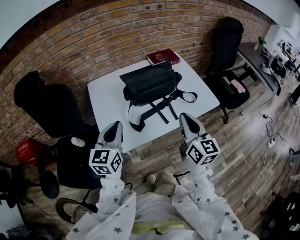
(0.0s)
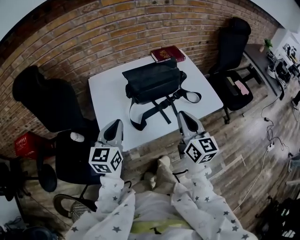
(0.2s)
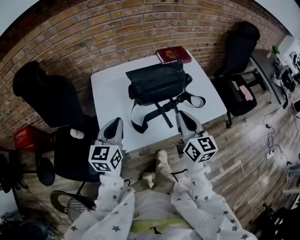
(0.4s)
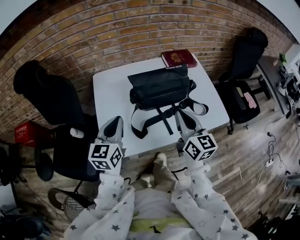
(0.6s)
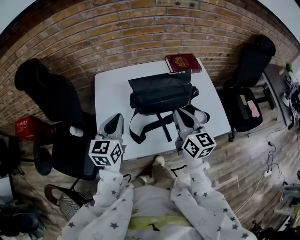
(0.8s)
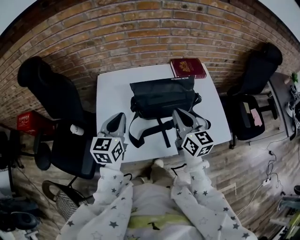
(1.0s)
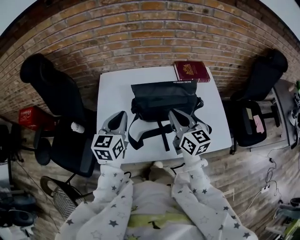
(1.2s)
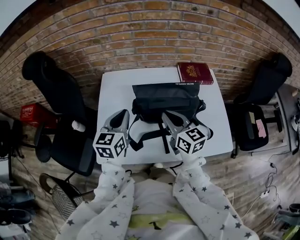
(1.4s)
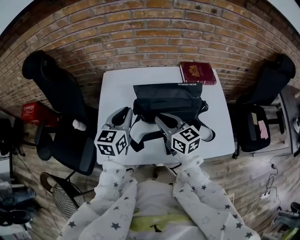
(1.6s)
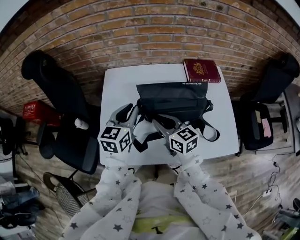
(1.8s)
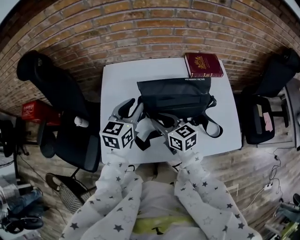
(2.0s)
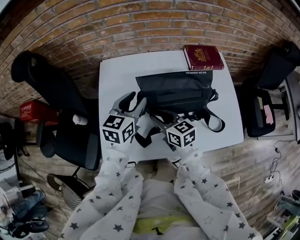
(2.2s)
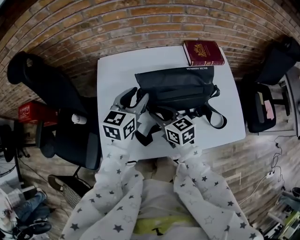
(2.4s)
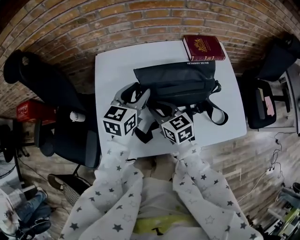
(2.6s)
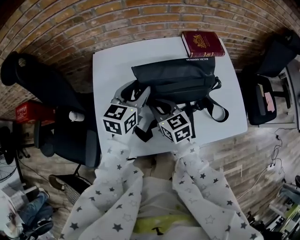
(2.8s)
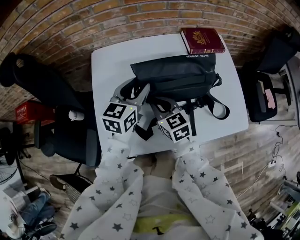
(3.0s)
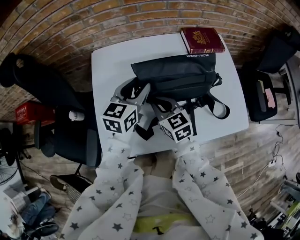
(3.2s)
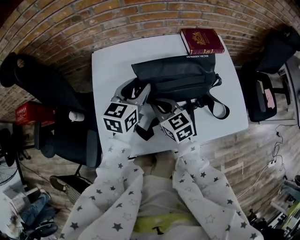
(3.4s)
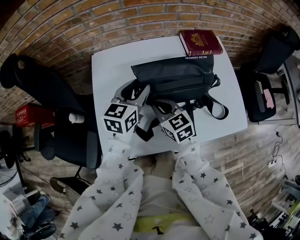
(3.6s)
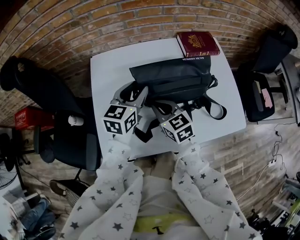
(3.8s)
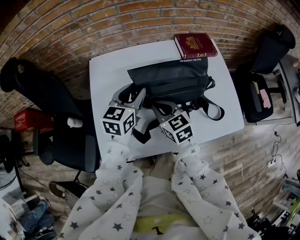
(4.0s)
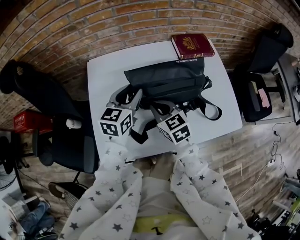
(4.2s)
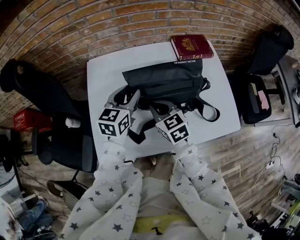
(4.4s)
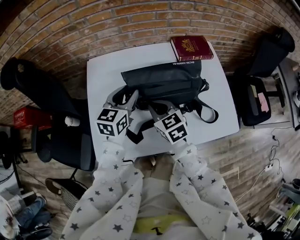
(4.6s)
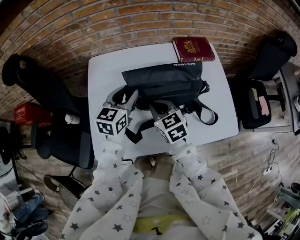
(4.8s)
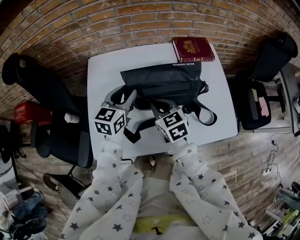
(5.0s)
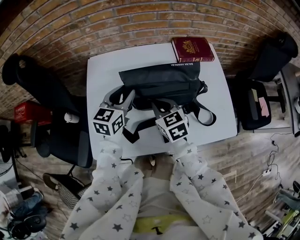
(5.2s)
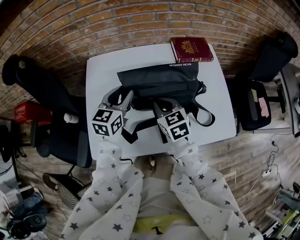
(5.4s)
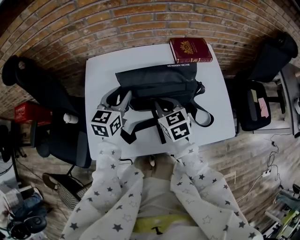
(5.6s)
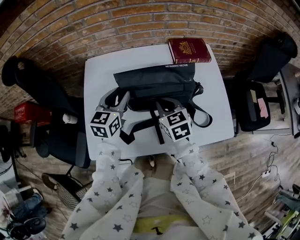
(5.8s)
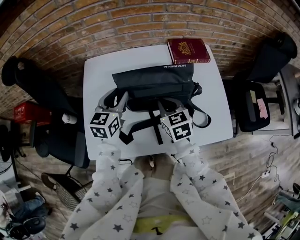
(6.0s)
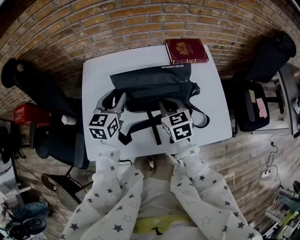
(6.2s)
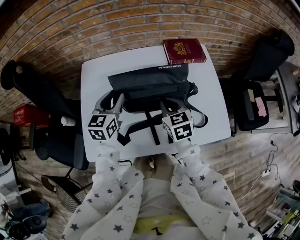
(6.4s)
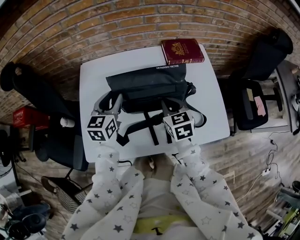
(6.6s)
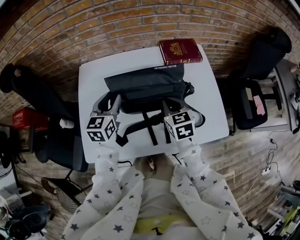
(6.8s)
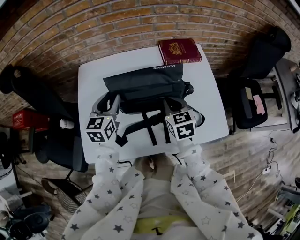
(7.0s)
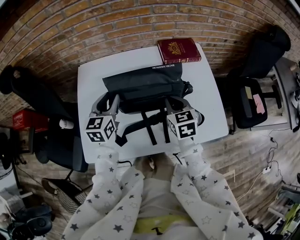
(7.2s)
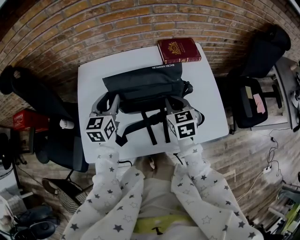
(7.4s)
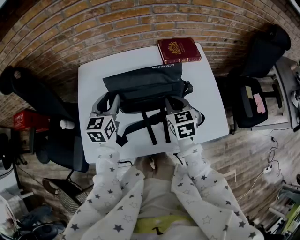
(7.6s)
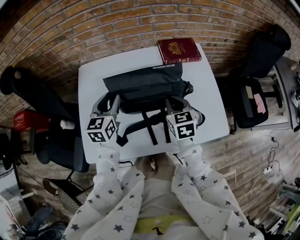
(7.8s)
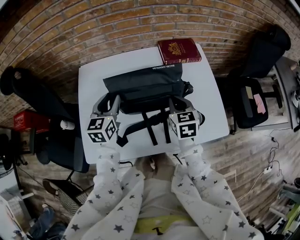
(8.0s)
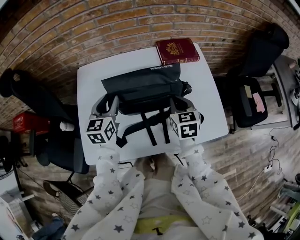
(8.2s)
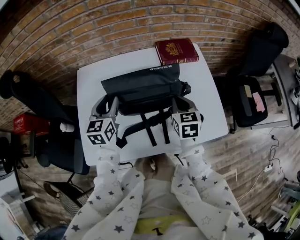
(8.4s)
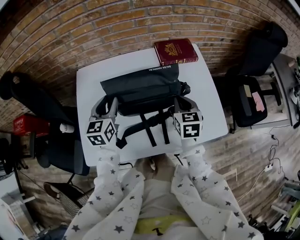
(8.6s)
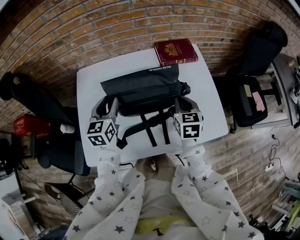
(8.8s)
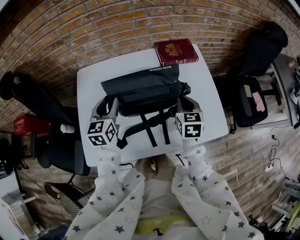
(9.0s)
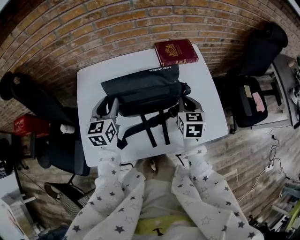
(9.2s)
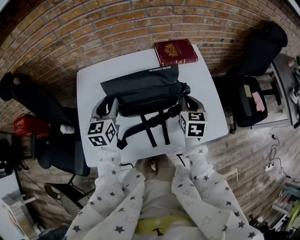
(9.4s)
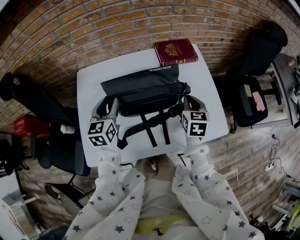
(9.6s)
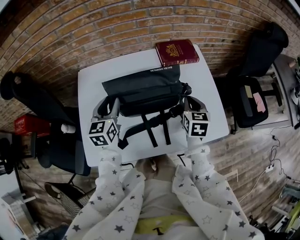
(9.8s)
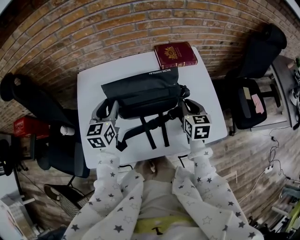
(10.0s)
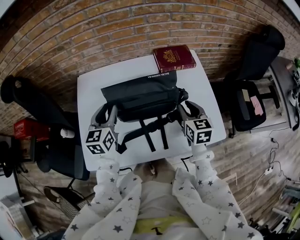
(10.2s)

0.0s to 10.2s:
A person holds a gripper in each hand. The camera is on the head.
0.0s to 1.4s: The right gripper changes place by approximately 25 cm, and turns by roughly 40 degrees; the left gripper shifts by approximately 15 cm.
1.4s to 3.0s: The right gripper goes approximately 15 cm downward and to the left, and opens, then closes once more; the left gripper heads forward and to the right, covering approximately 10 cm, and opens its fingers.
3.0s to 4.4s: The grippers move only a little.
4.4s to 5.8s: The right gripper travels to the right by roughly 5 cm.
5.8s to 7.2s: The right gripper travels to the right by approximately 10 cm.
7.2s to 8.8s: The right gripper goes approximately 5 cm to the right.
8.8s to 10.2s: The right gripper opens its fingers.

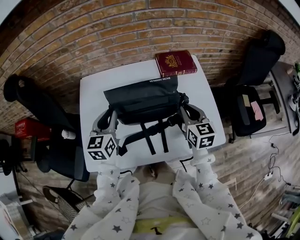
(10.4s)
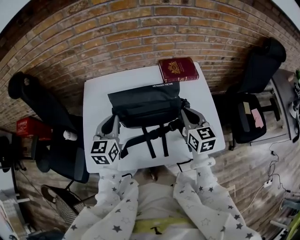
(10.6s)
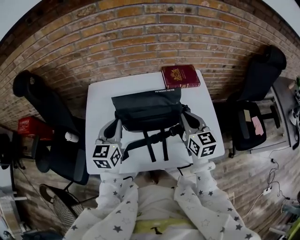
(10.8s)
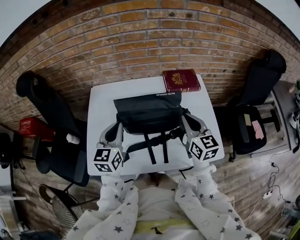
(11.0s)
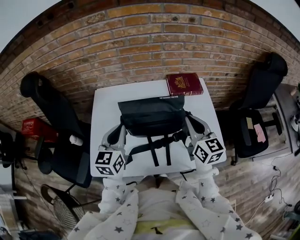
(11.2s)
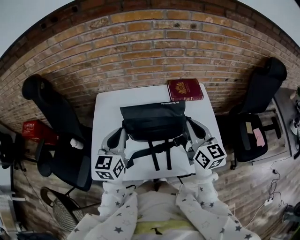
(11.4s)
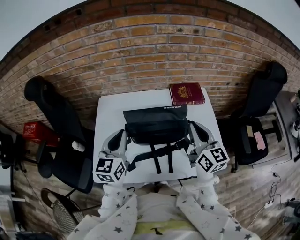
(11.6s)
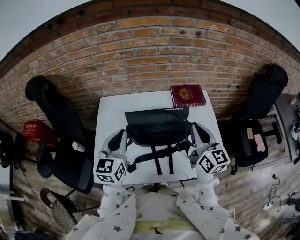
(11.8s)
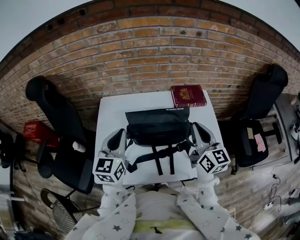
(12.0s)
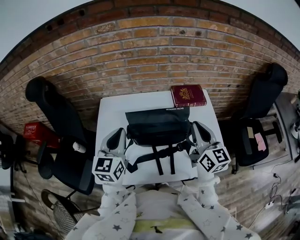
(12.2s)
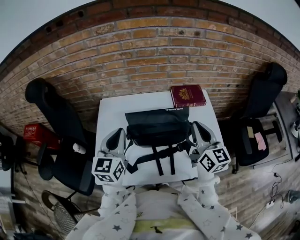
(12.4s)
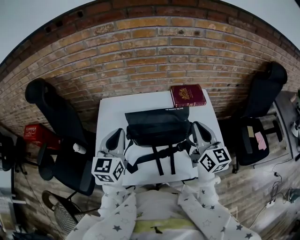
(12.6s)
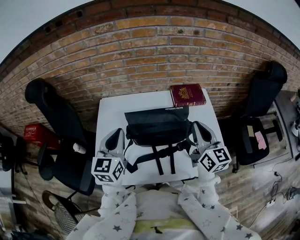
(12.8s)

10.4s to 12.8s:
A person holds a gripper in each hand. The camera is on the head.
10.4s to 11.6s: The left gripper goes some 10 cm upward. The right gripper moves upward, about 15 cm, and swivels some 30 degrees.
11.6s to 12.8s: The grippers move only a little.

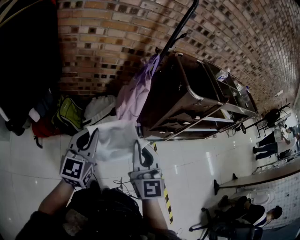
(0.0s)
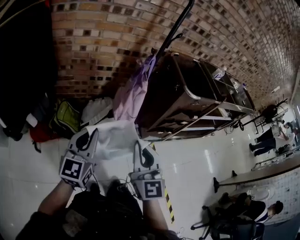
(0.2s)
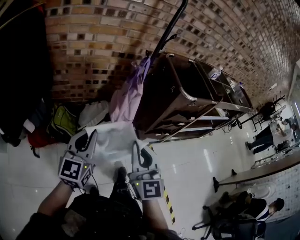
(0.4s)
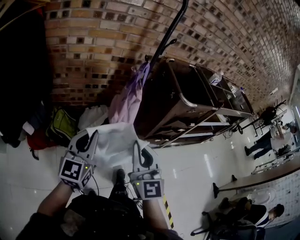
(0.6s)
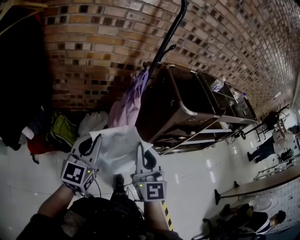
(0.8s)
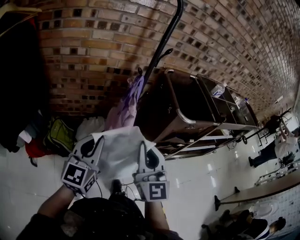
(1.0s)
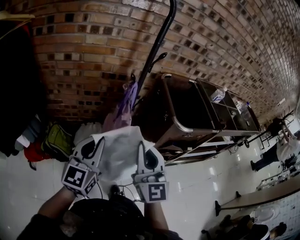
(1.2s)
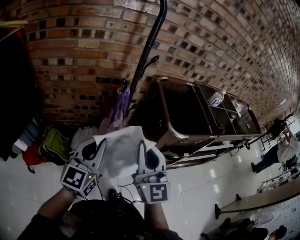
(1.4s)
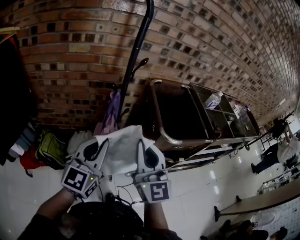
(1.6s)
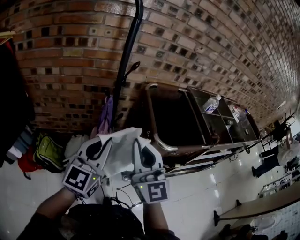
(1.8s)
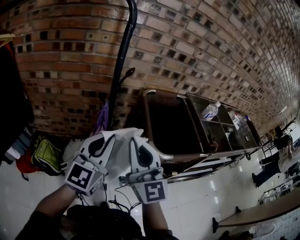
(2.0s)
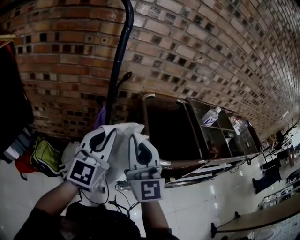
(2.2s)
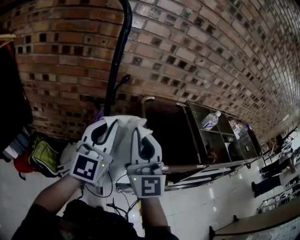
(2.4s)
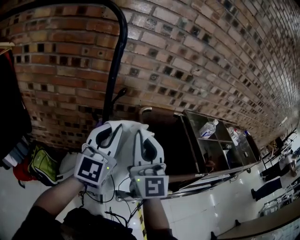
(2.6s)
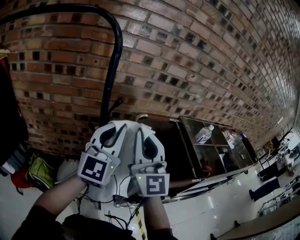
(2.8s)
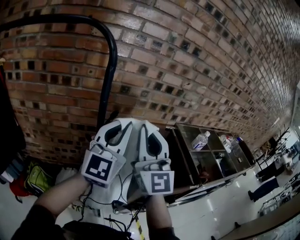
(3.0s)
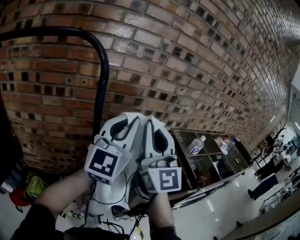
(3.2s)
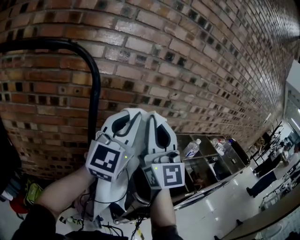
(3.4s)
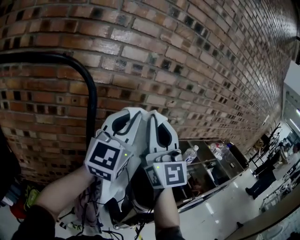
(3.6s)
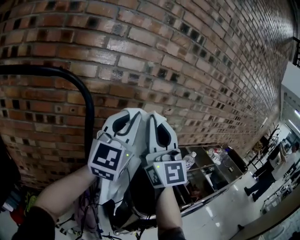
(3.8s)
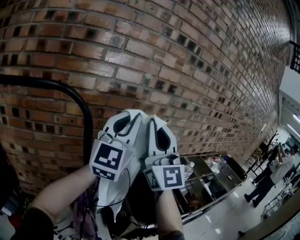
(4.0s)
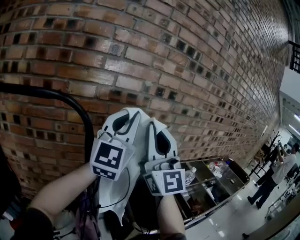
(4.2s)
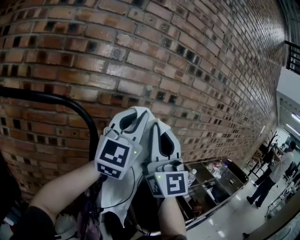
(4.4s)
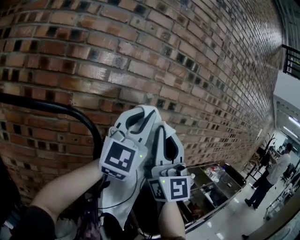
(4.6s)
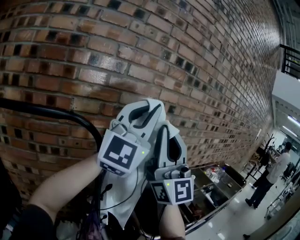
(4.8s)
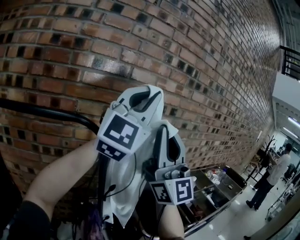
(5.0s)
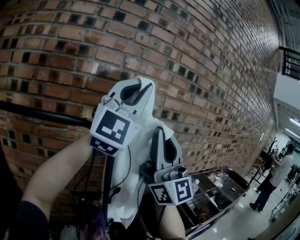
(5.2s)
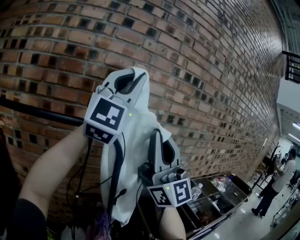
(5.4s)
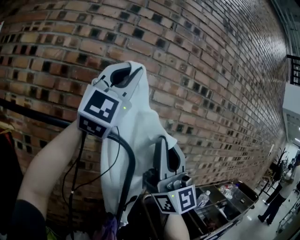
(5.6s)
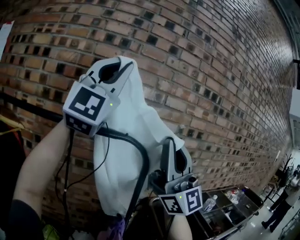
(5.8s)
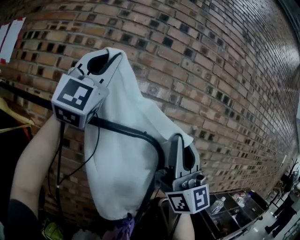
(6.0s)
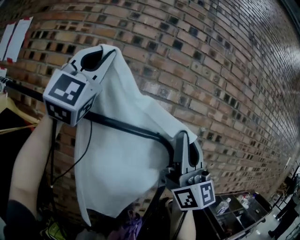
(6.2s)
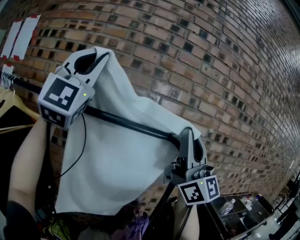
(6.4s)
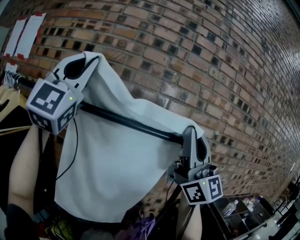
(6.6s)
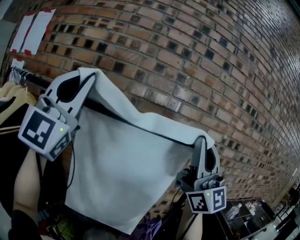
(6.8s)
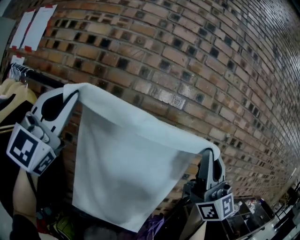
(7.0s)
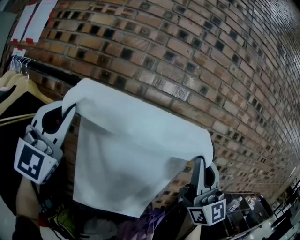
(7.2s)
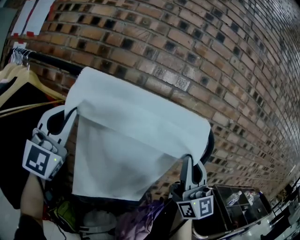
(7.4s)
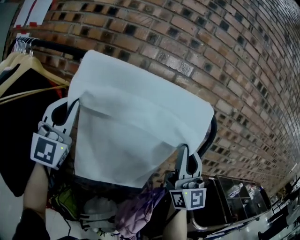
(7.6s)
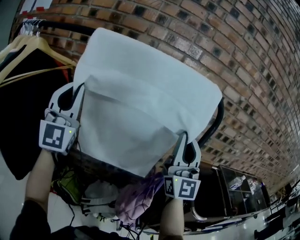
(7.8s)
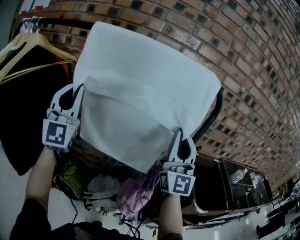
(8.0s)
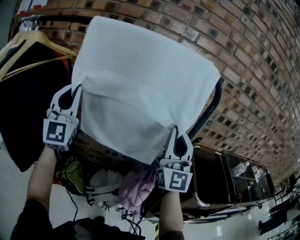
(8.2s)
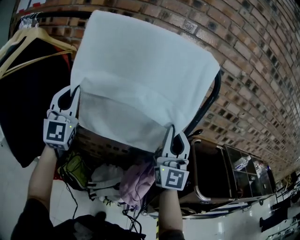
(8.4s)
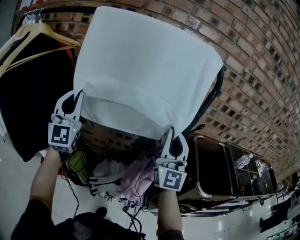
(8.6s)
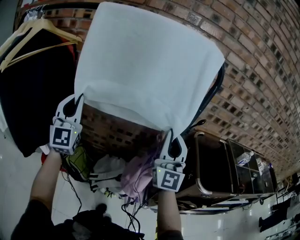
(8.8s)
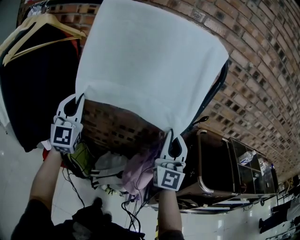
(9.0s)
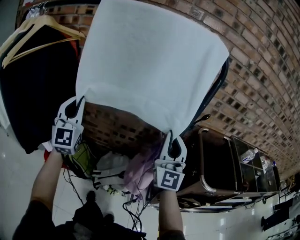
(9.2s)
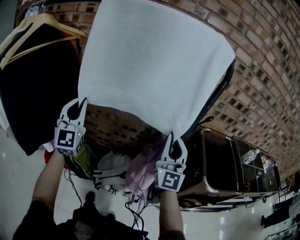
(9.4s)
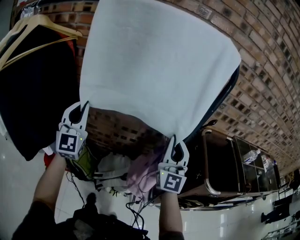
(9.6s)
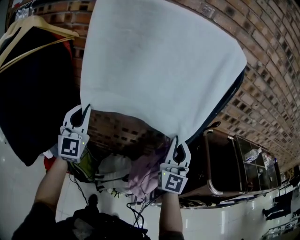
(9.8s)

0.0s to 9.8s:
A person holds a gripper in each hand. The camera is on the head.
0.0s to 1.4s: The grippers both shift forward and to the right by approximately 30 cm.
1.4s to 2.8s: The left gripper moves forward, to the right and upward, approximately 30 cm, and changes its angle by approximately 20 degrees. Meanwhile the right gripper heads forward, upward and to the right, covering about 25 cm.
2.8s to 4.2s: The left gripper travels upward and forward by roughly 30 cm, while the right gripper heads upward, covering approximately 25 cm, and changes its angle by approximately 20 degrees.
4.2s to 5.6s: The left gripper is displaced upward and to the left by some 30 cm, and changes its angle by approximately 30 degrees. The right gripper moves to the left, backward and upward, approximately 15 cm.
5.6s to 7.0s: The right gripper moves to the left, about 20 cm. The left gripper moves to the left, about 40 cm.
7.0s to 8.4s: The two grippers go about 25 cm downward. The left gripper rotates roughly 30 degrees. Meanwhile the right gripper rotates about 20 degrees.
8.4s to 9.8s: The grippers both shift downward by about 15 cm.

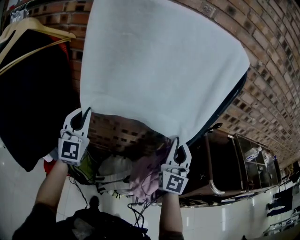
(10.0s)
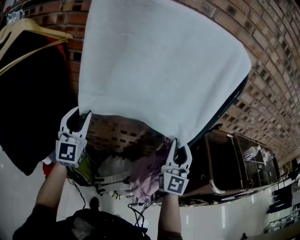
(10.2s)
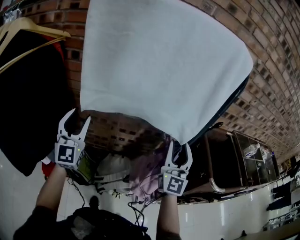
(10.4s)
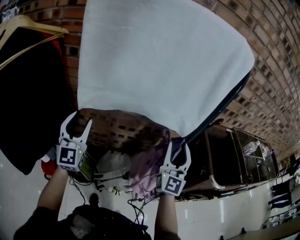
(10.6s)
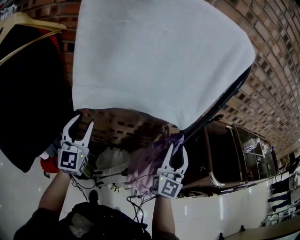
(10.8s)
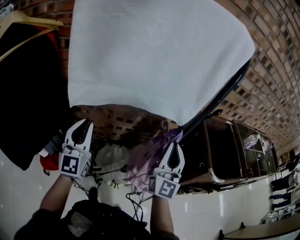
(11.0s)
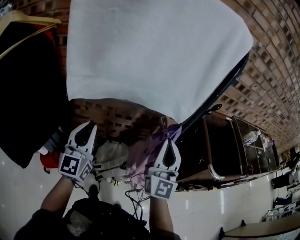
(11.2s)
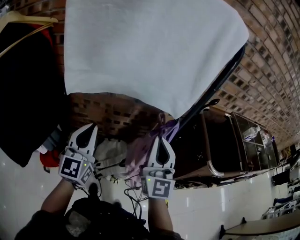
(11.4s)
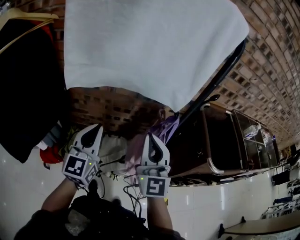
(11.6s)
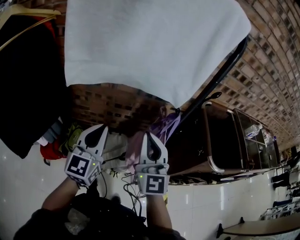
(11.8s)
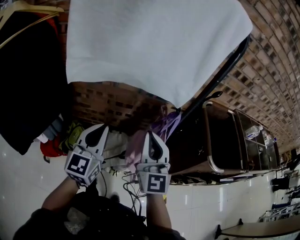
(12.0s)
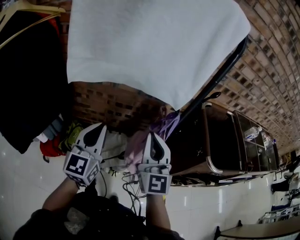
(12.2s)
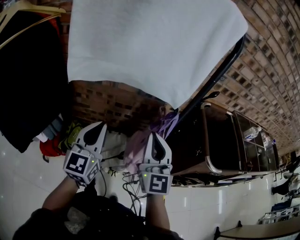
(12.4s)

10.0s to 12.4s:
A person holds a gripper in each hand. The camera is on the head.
10.0s to 11.2s: The right gripper goes about 5 cm backward, and opens, then closes once more, while the left gripper shifts about 10 cm to the right and downward, swivels about 30 degrees, and opens, then closes again.
11.2s to 12.4s: The left gripper travels to the right by some 5 cm.
